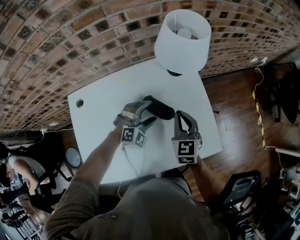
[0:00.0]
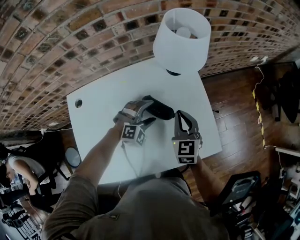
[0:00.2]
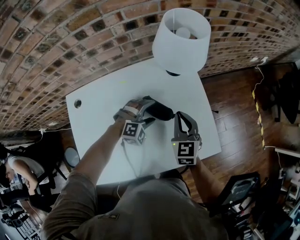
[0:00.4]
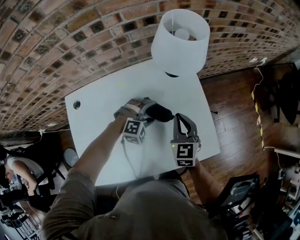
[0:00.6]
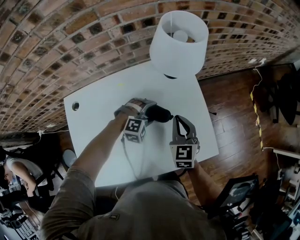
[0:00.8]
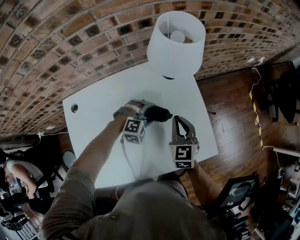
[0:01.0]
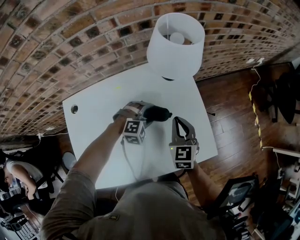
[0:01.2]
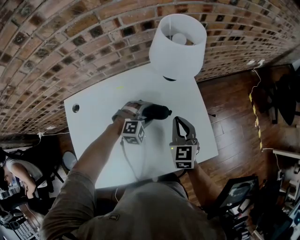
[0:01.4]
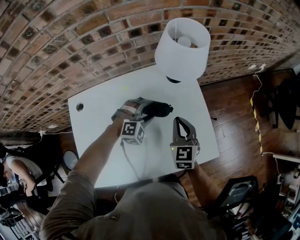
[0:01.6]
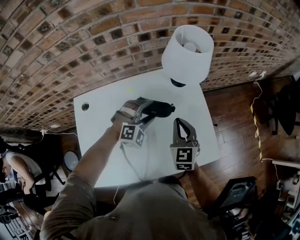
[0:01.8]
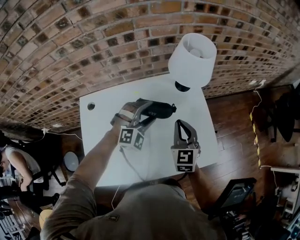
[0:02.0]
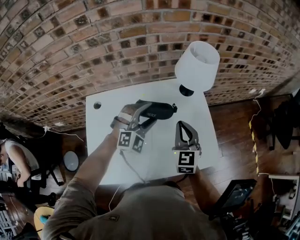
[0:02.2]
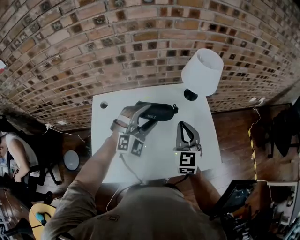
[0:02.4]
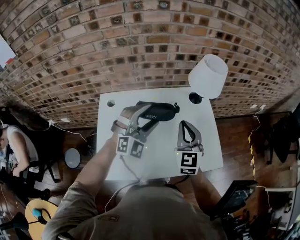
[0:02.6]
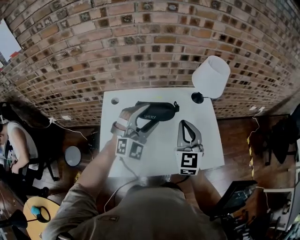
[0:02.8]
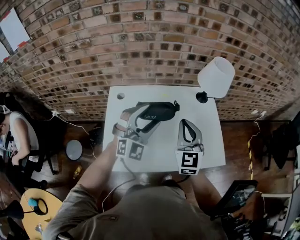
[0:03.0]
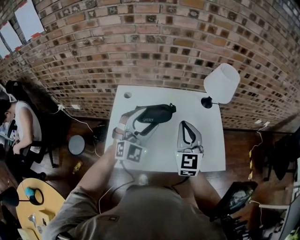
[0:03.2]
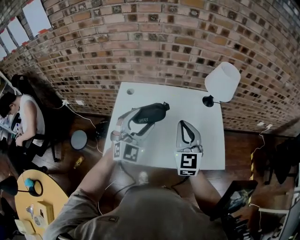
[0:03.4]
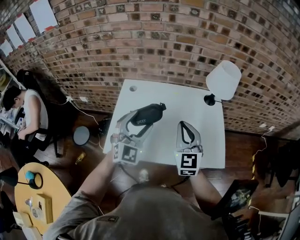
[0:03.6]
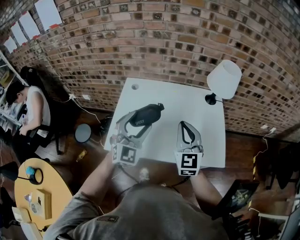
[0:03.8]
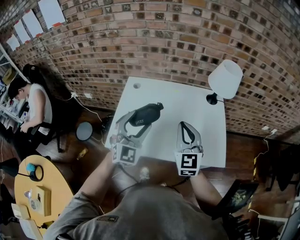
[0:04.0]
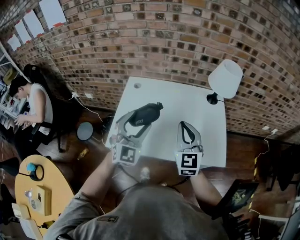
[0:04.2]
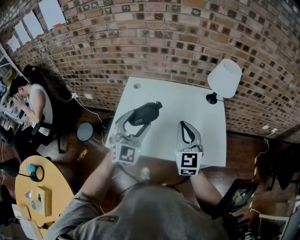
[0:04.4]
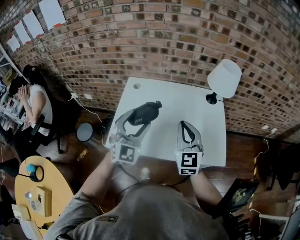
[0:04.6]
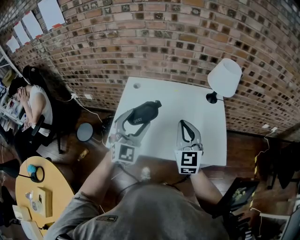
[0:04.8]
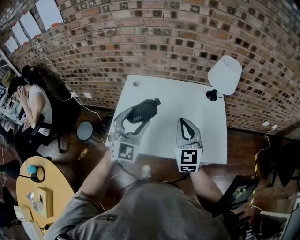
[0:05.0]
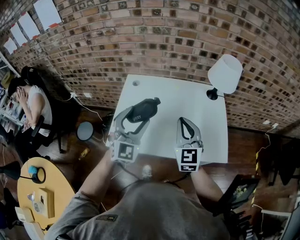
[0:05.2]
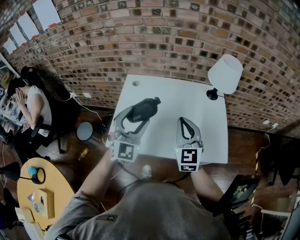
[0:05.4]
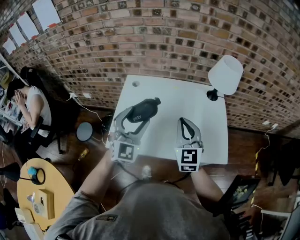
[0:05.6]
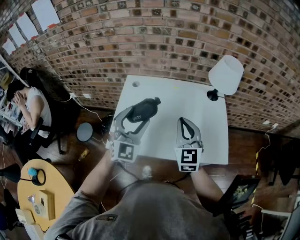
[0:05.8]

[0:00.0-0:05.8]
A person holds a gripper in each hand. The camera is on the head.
0:01.4 to 0:02.8: The two grippers go approximately 30 cm upward, to the left and backward. The left gripper angles its fingers upward, by some 40 degrees, while the right gripper swivels about 20 degrees.
0:02.8 to 0:04.4: The left gripper goes about 15 cm backward and to the left, and rotates roughly 30 degrees, while the right gripper goes roughly 10 cm backward.
0:04.4 to 0:05.8: There are only small adjustments of the grippers.

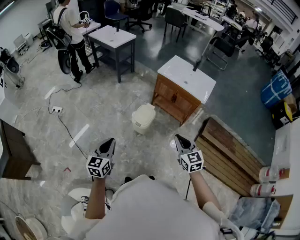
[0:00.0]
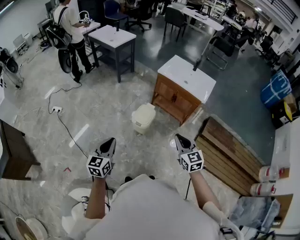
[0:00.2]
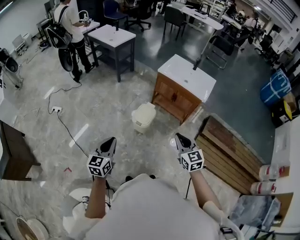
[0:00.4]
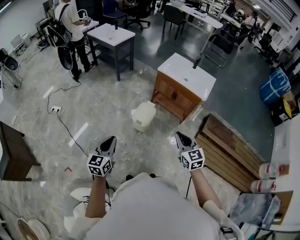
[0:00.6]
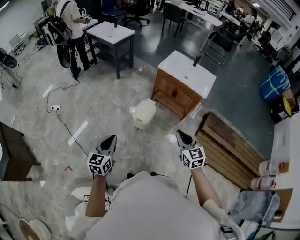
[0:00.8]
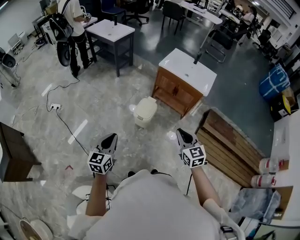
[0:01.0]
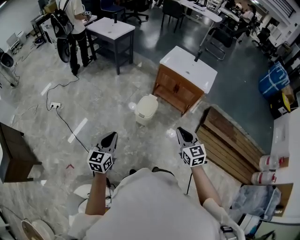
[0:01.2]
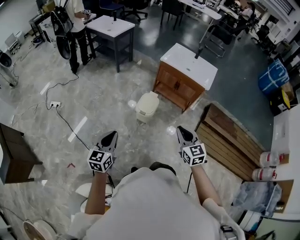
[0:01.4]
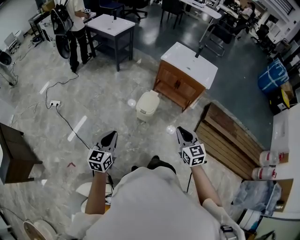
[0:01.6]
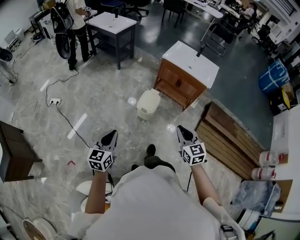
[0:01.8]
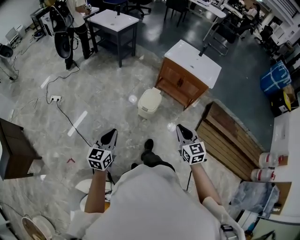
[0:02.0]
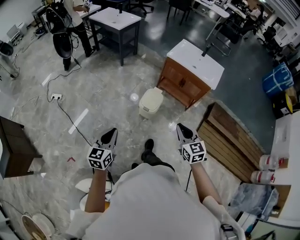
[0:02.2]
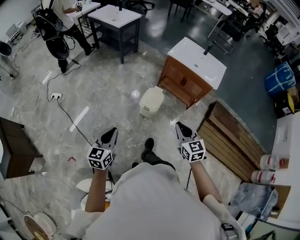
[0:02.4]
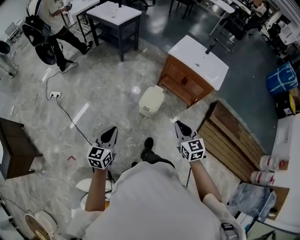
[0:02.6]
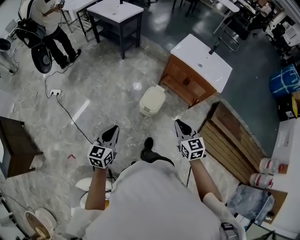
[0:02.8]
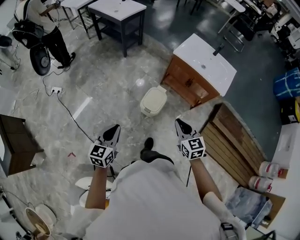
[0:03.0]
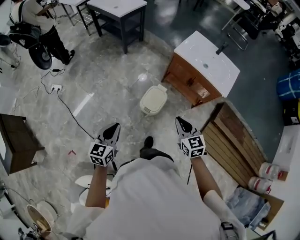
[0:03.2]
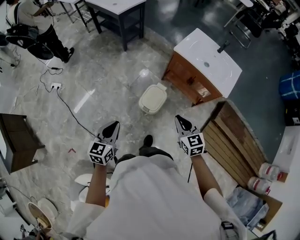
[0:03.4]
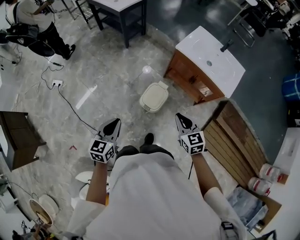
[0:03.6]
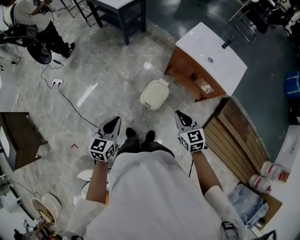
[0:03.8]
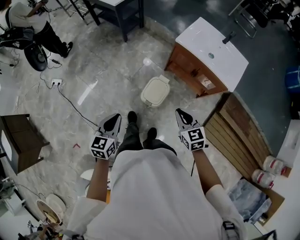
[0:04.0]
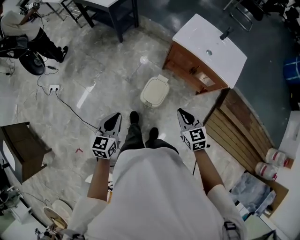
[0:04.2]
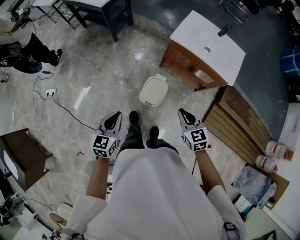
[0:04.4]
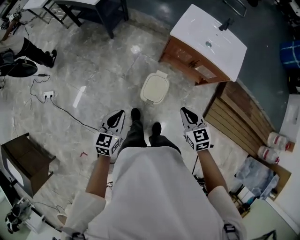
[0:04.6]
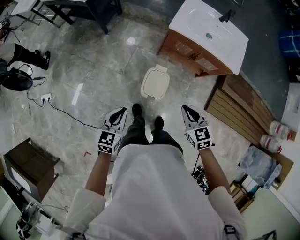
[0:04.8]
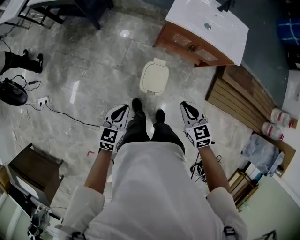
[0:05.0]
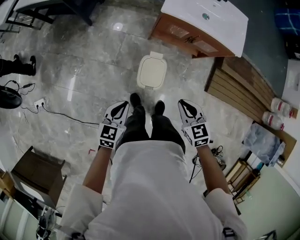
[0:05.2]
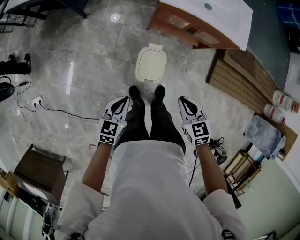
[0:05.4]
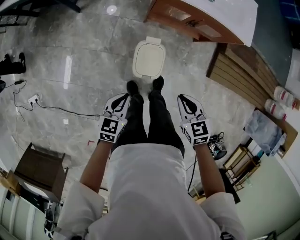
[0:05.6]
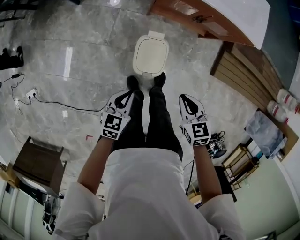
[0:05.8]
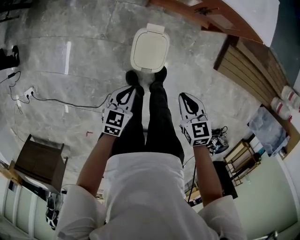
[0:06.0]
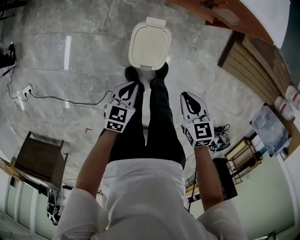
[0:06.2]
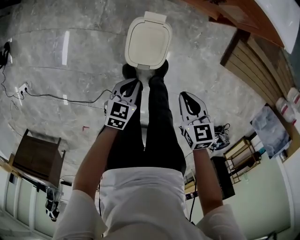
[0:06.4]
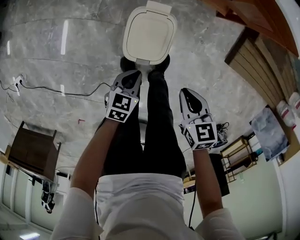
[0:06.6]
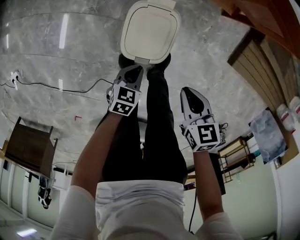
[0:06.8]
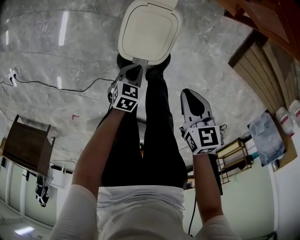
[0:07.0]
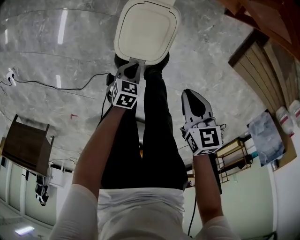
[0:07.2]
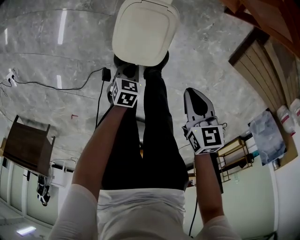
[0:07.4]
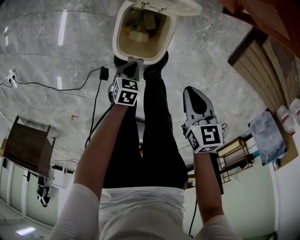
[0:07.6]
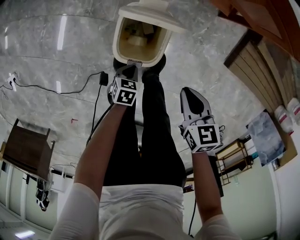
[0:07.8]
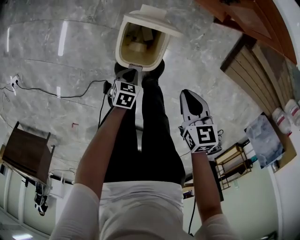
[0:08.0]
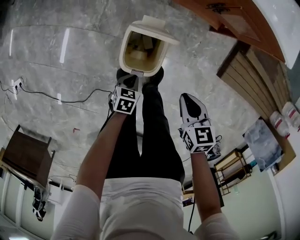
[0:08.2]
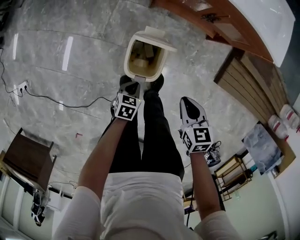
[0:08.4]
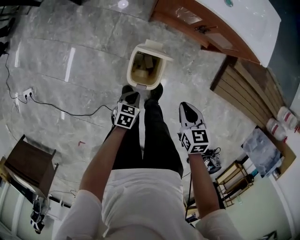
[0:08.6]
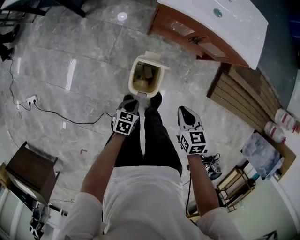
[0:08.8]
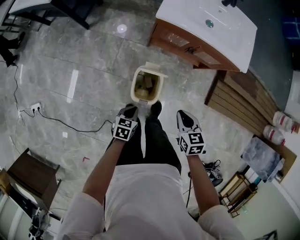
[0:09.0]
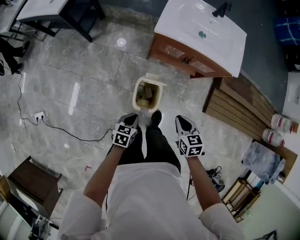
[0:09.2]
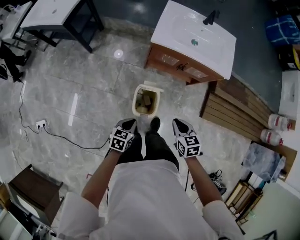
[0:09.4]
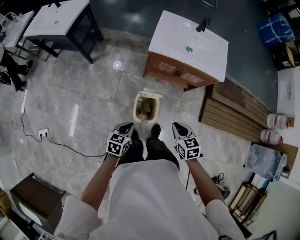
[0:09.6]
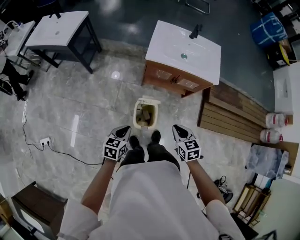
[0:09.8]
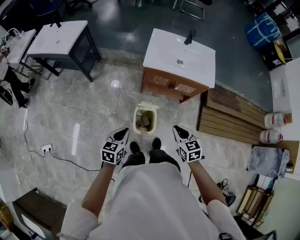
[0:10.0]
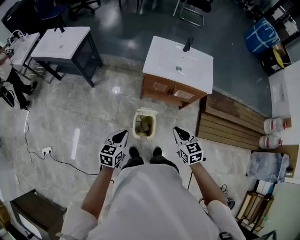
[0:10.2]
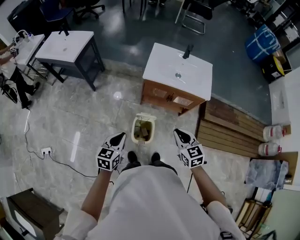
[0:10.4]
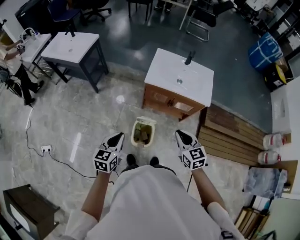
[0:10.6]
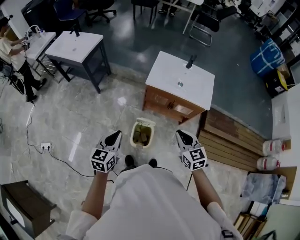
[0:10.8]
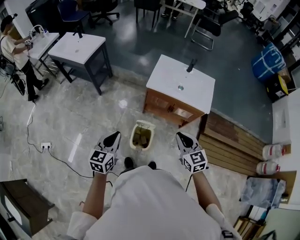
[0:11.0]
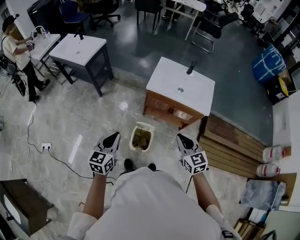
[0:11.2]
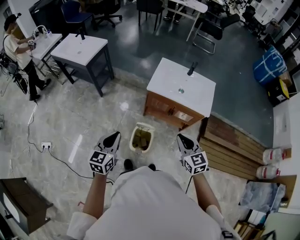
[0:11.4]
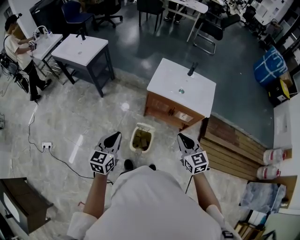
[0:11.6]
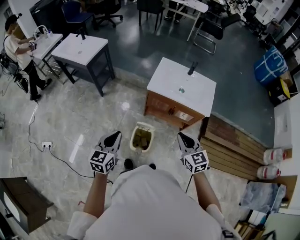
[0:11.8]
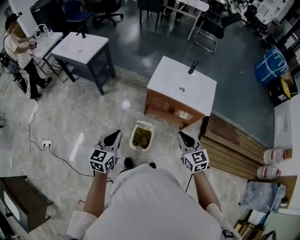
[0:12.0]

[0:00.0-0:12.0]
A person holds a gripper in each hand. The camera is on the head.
0:00.0 to 0:01.6: Both grippers travel together to the left, approximately 10 cm.
0:01.6 to 0:03.0: Both grippers travel together forward, approximately 15 cm.
0:03.0 to 0:04.4: The left gripper heads forward, covering approximately 15 cm; the right gripper is displaced forward and downward by some 10 cm.
0:04.4 to 0:06.0: The two grippers go about 25 cm downward. The left gripper changes its angle by some 30 degrees; the right gripper turns by approximately 30 degrees.
0:06.0 to 0:07.6: The right gripper shifts approximately 15 cm downward, while the left gripper moves downward, some 30 cm, and swivels about 30 degrees.
0:07.6 to 0:09.0: Both grippers travel together upward, roughly 25 cm.
0:09.0 to 0:10.4: The grippers both shift upward by some 30 cm. The right gripper turns by about 20 degrees; the left gripper swivels approximately 30 degrees.
0:10.4 to 0:12.0: The right gripper moves upward, approximately 5 cm; the left gripper shifts roughly 10 cm upward.

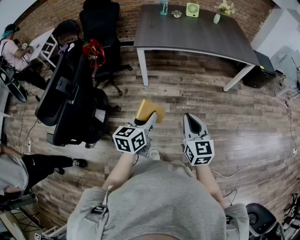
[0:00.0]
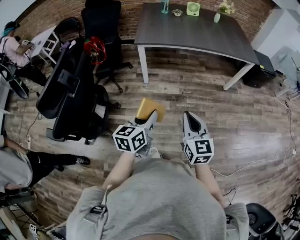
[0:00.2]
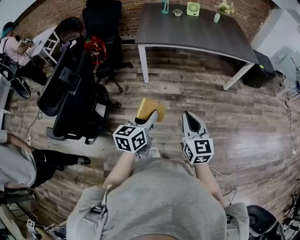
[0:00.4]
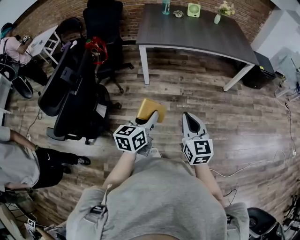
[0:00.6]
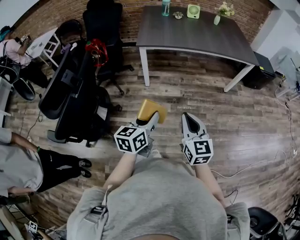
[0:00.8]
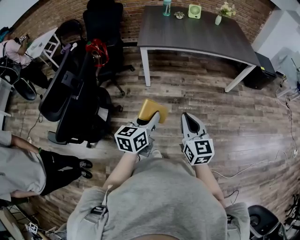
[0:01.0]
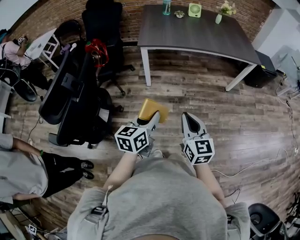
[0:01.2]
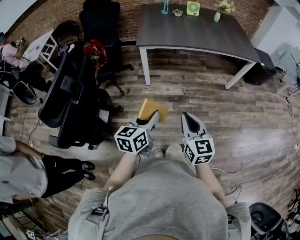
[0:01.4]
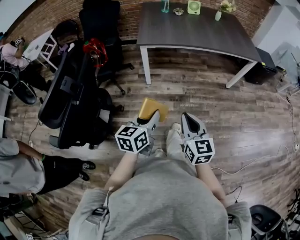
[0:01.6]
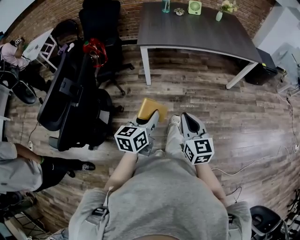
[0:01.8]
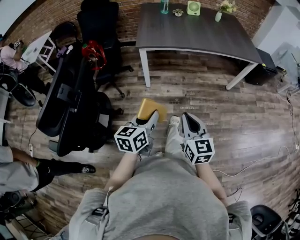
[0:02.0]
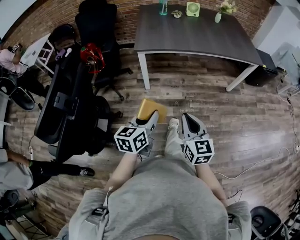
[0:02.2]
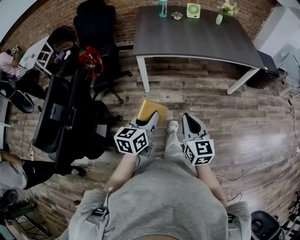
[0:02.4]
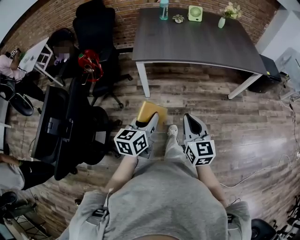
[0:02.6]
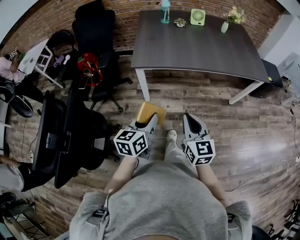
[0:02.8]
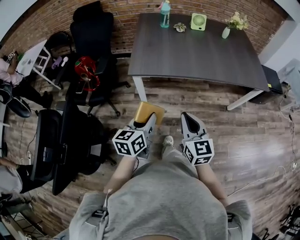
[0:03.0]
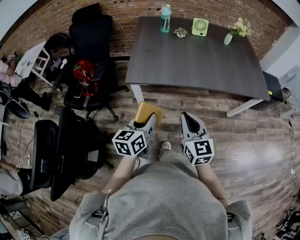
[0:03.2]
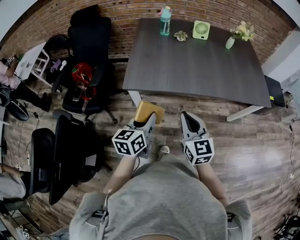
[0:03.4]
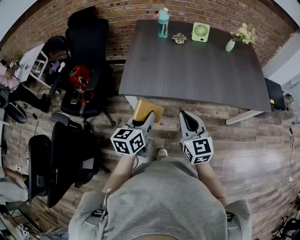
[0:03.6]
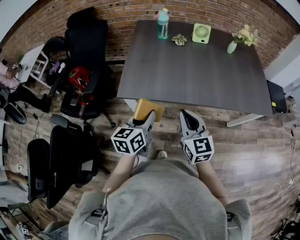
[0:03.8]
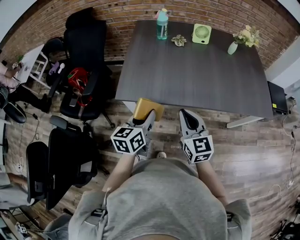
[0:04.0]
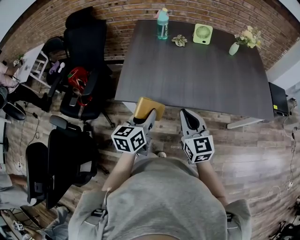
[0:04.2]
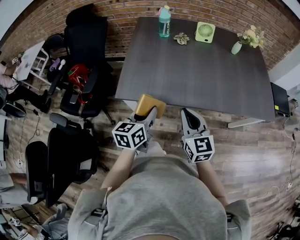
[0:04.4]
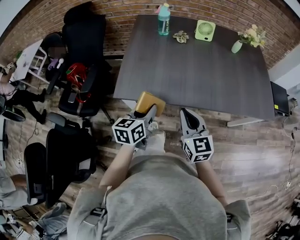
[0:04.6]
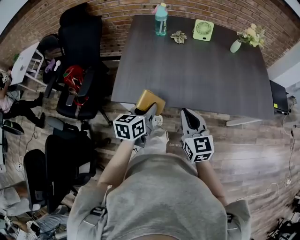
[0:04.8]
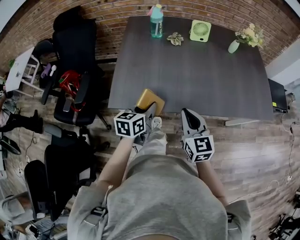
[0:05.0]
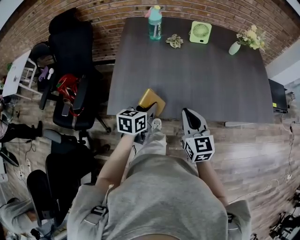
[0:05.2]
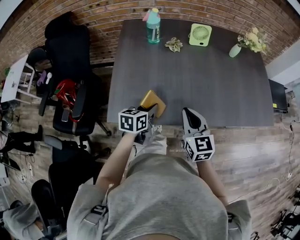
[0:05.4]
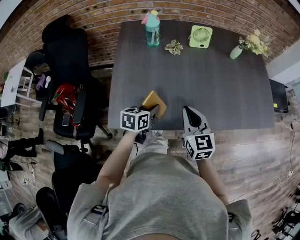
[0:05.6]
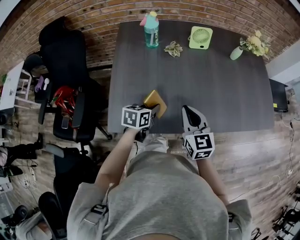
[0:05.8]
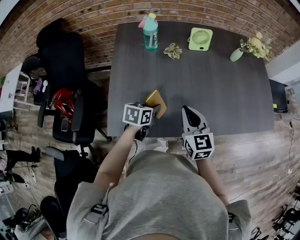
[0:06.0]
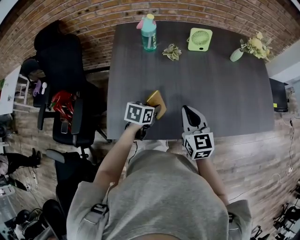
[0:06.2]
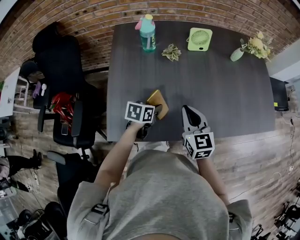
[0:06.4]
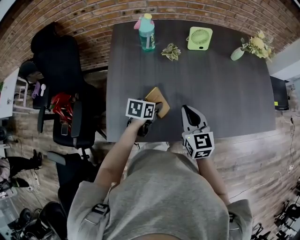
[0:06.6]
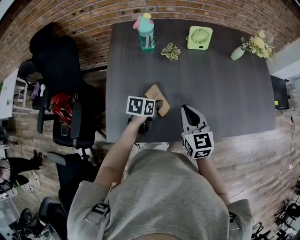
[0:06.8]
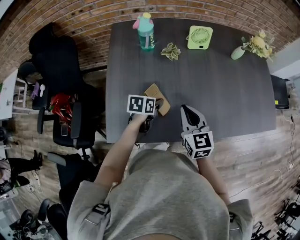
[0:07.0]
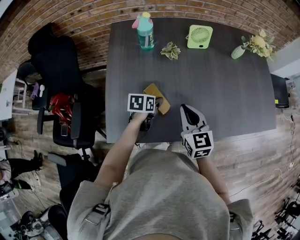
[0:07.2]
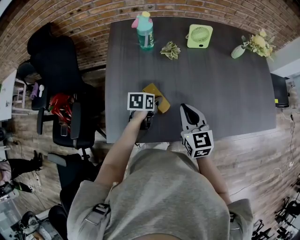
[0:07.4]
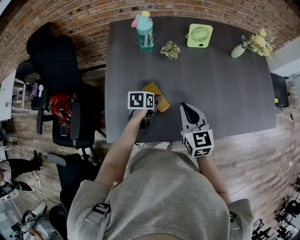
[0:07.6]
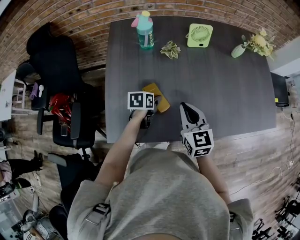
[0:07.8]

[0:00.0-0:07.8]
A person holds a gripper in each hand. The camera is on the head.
0:00.0 to 0:01.6: The right gripper is displaced to the left by about 5 cm.
0:01.6 to 0:03.2: Both grippers move forward, approximately 35 cm.
0:03.2 to 0:04.6: Both grippers move forward, roughly 20 cm.
0:04.6 to 0:06.2: The right gripper heads forward, covering some 20 cm. Meanwhile the left gripper is displaced forward and downward by approximately 25 cm, and turns by roughly 30 degrees.
0:06.2 to 0:07.8: The left gripper is displaced forward by about 5 cm, and opens.
